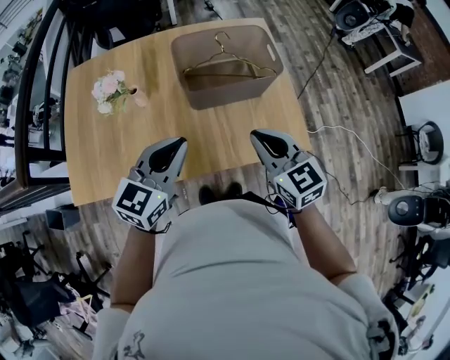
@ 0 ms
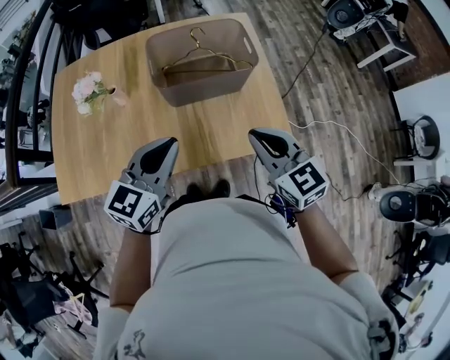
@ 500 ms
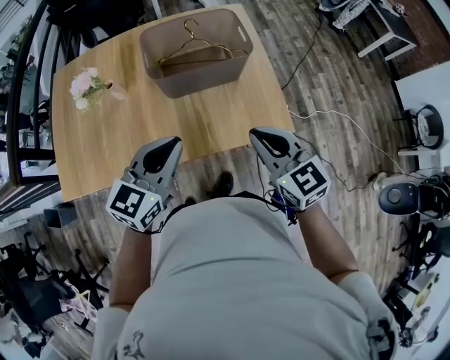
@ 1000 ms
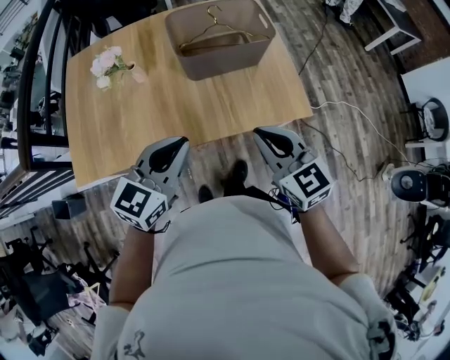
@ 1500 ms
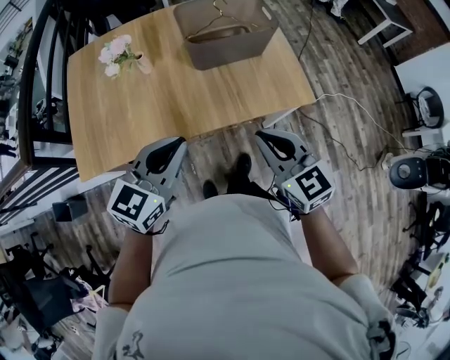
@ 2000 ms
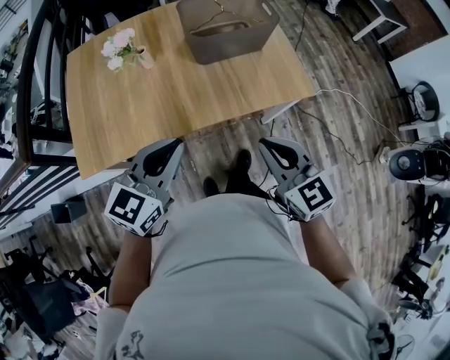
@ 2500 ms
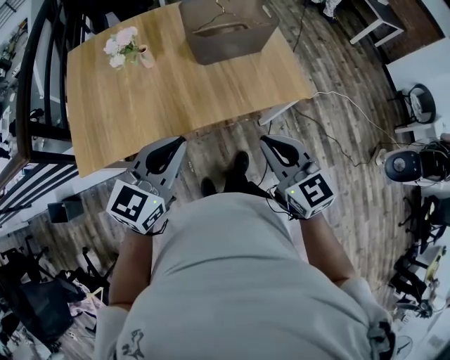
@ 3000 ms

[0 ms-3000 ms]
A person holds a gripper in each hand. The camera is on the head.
0 ms to 1500 ms: The grippers both shift backward by roughly 10 cm.
1500 ms to 3000 ms: The two grippers go some 15 cm backward and to the left.

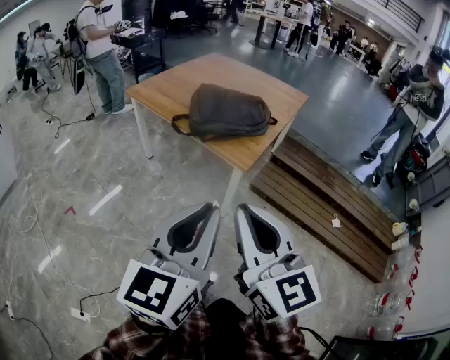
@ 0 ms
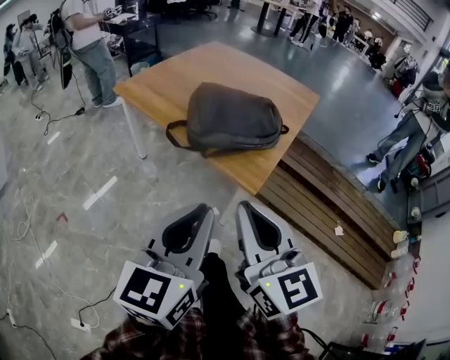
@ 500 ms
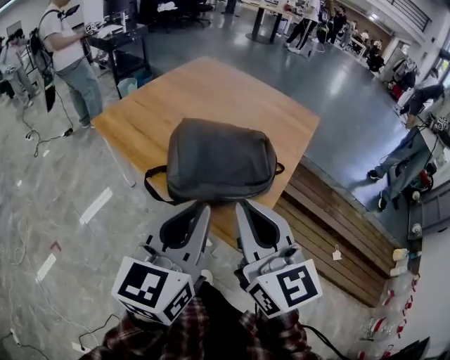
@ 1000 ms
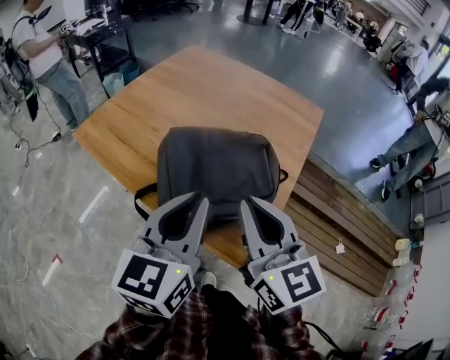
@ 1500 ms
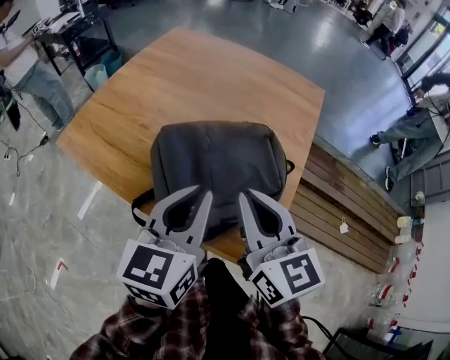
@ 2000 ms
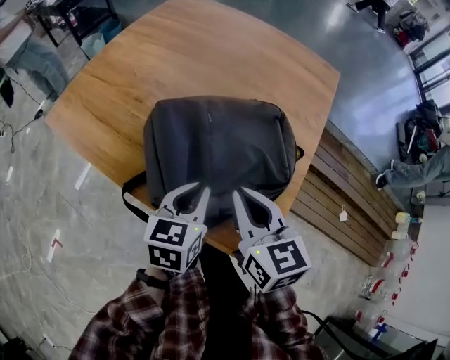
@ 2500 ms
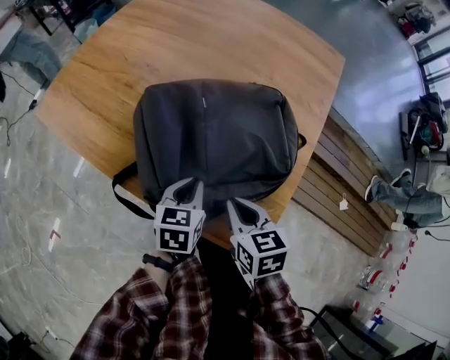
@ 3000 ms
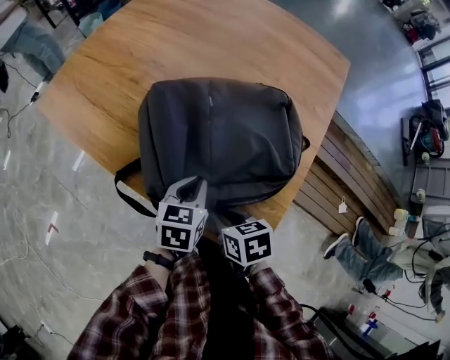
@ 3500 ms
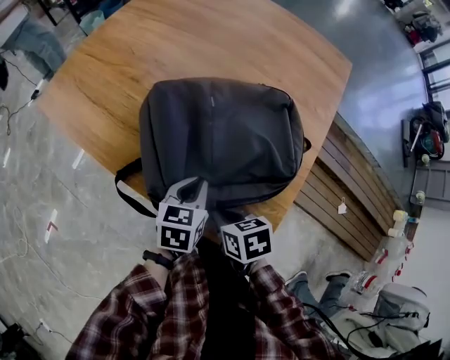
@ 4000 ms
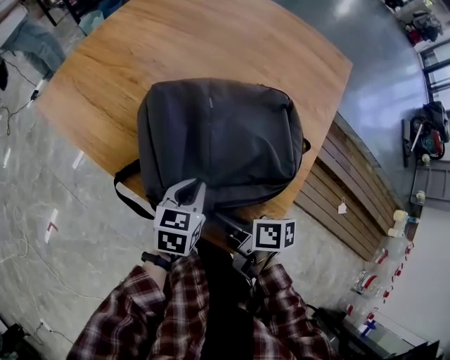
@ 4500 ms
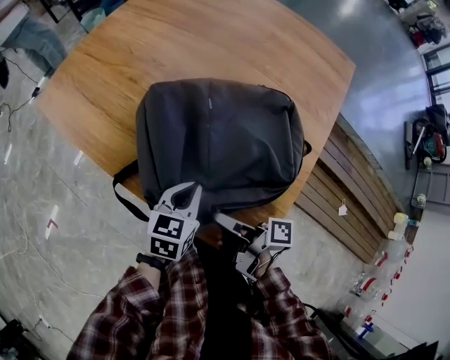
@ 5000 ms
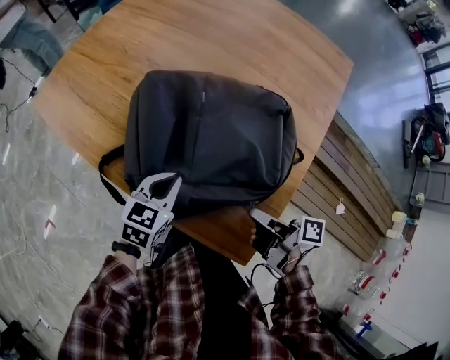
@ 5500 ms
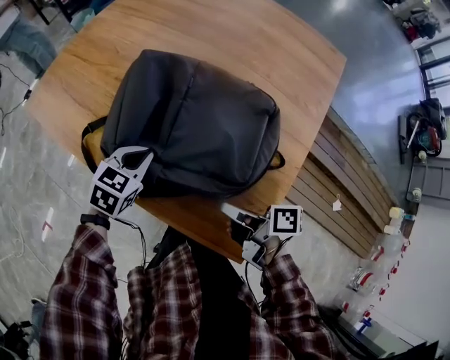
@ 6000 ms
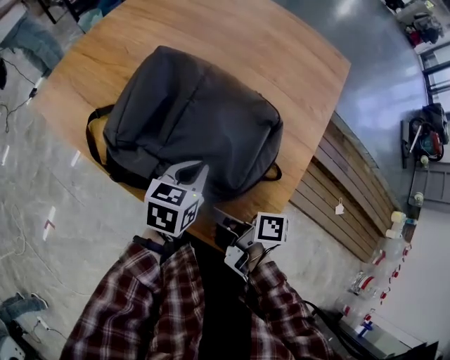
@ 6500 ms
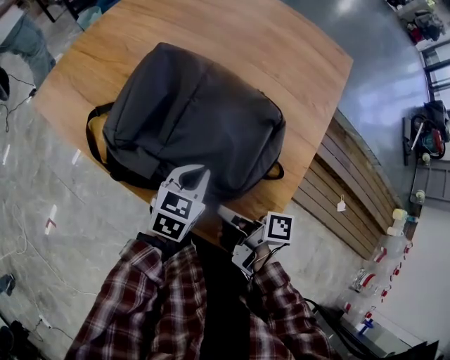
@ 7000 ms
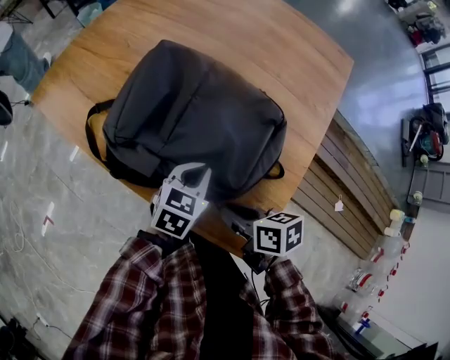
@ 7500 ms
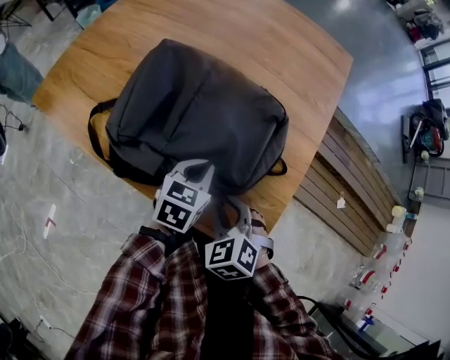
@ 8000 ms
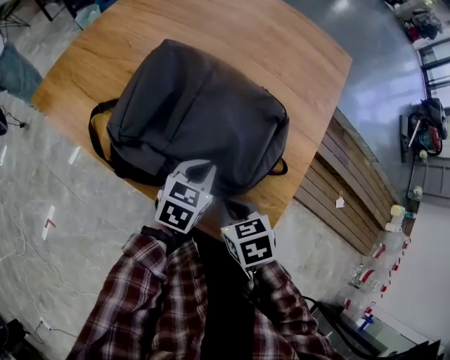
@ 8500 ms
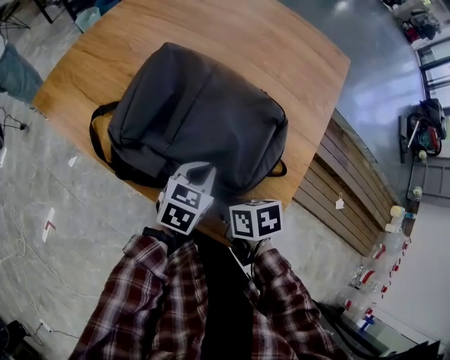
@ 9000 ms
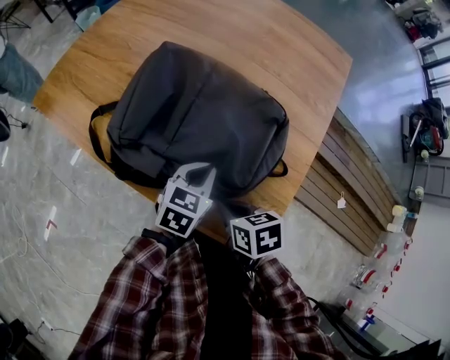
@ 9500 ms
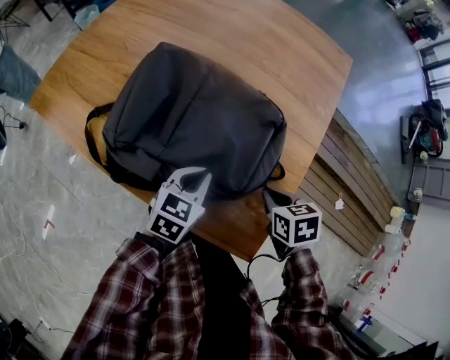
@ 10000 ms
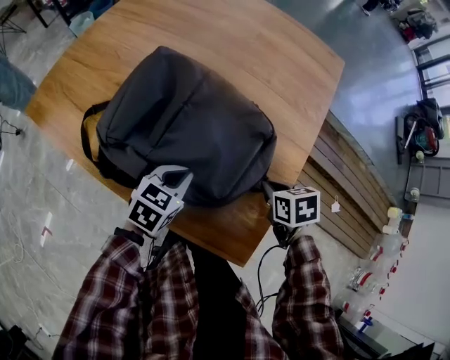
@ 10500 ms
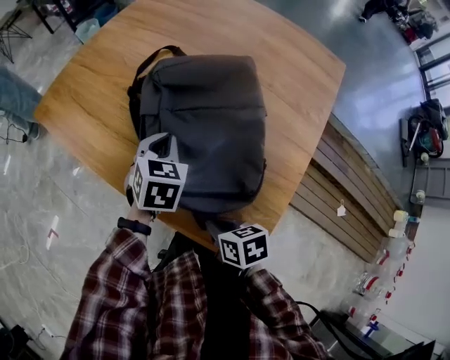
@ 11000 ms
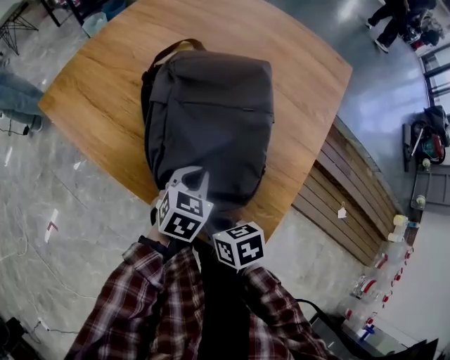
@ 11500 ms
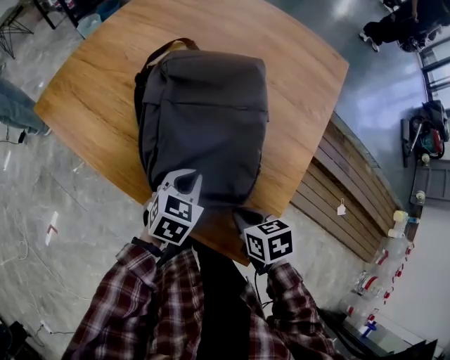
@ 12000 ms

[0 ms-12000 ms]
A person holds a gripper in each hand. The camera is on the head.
0 ms to 2000 ms: Both grippers are carried forward, approximately 60 cm.
2000 ms to 4000 ms: The grippers both shift downward by about 30 cm. The right gripper tips its fingers downward by some 50 degrees. Meanwhile the left gripper changes its angle by approximately 30 degrees.
4000 ms to 6000 ms: The left gripper shifts approximately 10 cm forward and to the left, and rotates approximately 30 degrees. The right gripper shifts about 5 cm to the right, and points its fingers roughly 40 degrees further upward.
6000 ms to 8000 ms: The left gripper changes place by approximately 15 cm; the right gripper twists about 80 degrees counterclockwise, seen from behind.
8000 ms to 10000 ms: The right gripper goes about 15 cm to the right and forward, and rotates roughly 40 degrees.

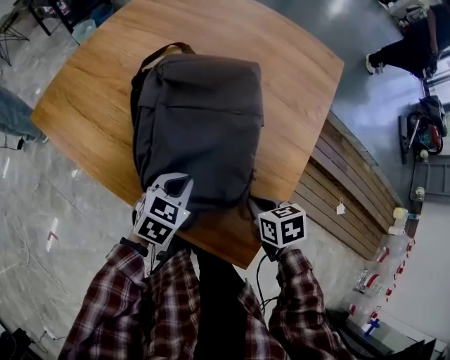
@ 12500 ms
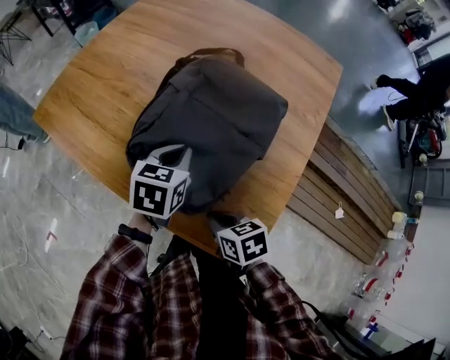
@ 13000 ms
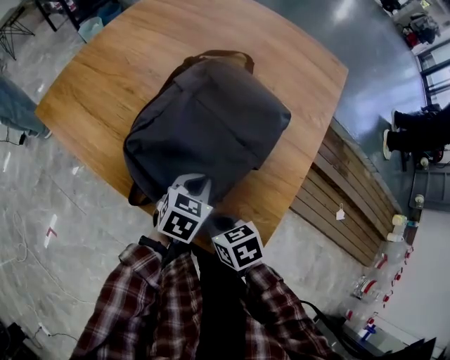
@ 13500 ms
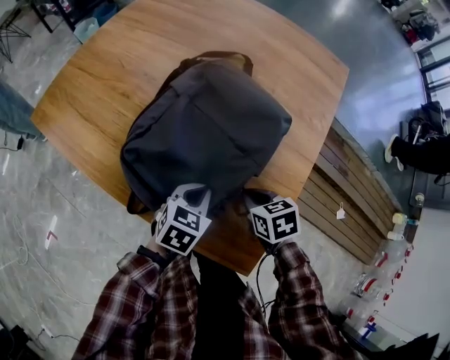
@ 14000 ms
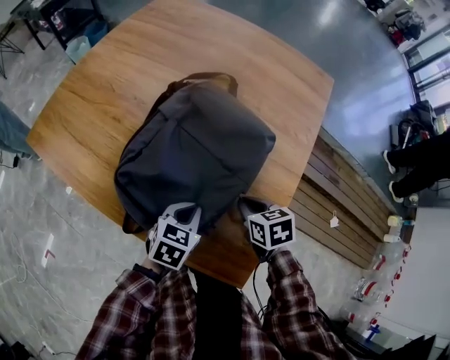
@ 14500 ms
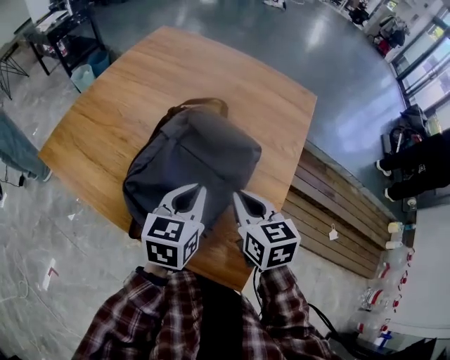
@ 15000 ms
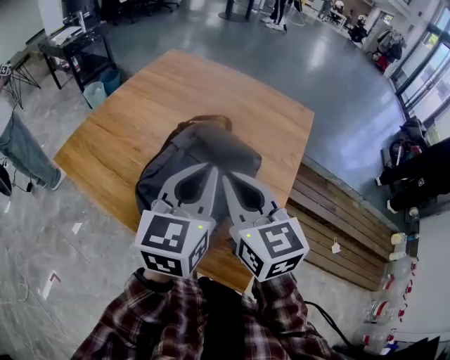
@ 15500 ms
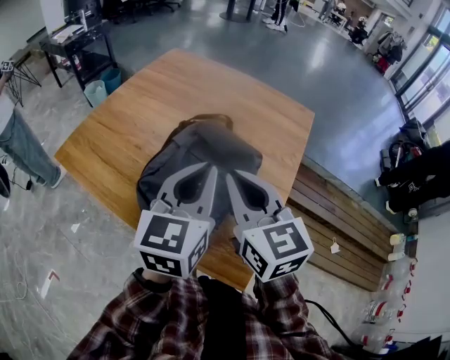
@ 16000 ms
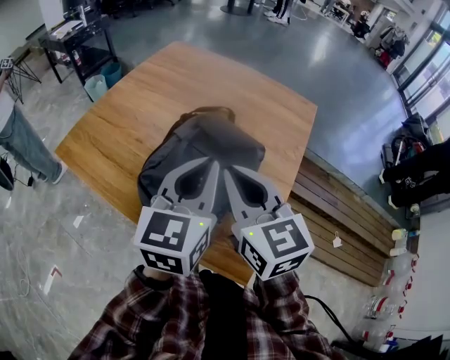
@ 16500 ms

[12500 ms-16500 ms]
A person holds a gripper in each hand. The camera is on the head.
12500 ms to 14500 ms: The right gripper moves forward, some 5 cm, and goes to the left and returns, approximately 15 cm each way.
14500 ms to 16500 ms: The two grippers go roughly 30 cm upward. The left gripper angles its fingers upward, by approximately 40 degrees. The right gripper tilts its fingers about 40 degrees upward.

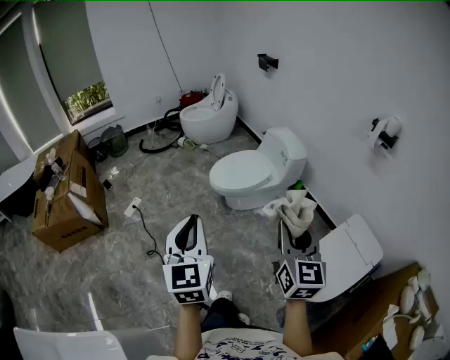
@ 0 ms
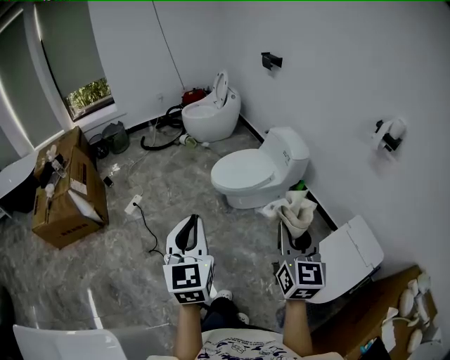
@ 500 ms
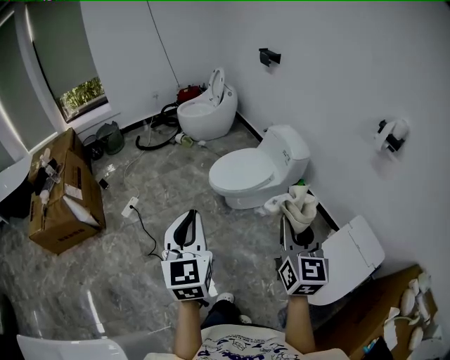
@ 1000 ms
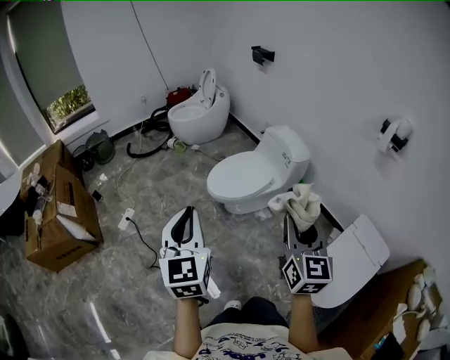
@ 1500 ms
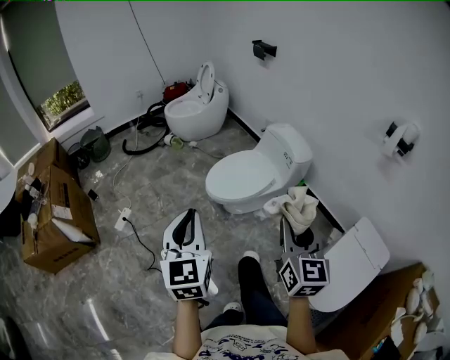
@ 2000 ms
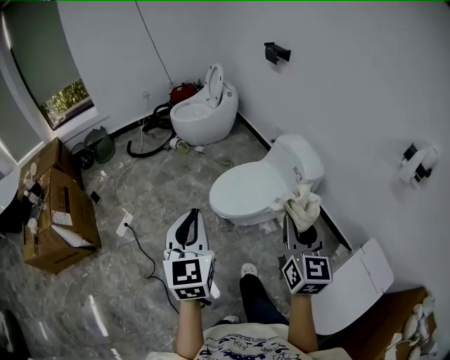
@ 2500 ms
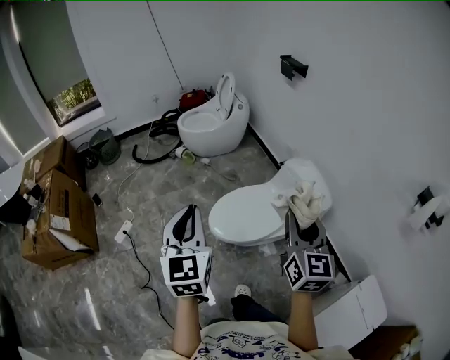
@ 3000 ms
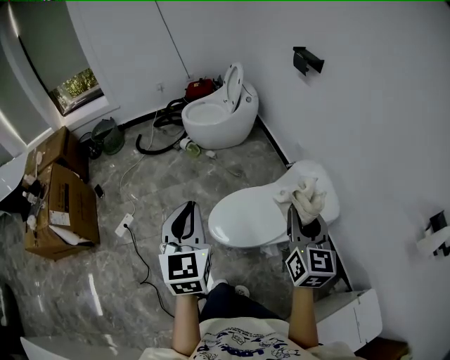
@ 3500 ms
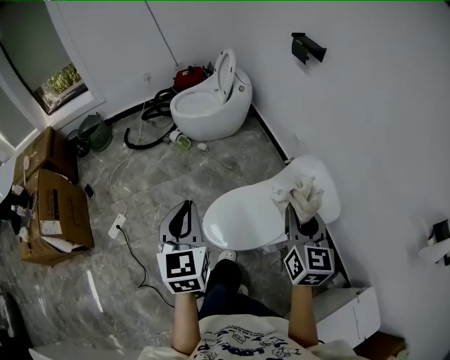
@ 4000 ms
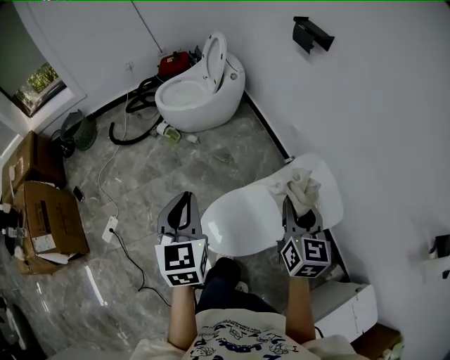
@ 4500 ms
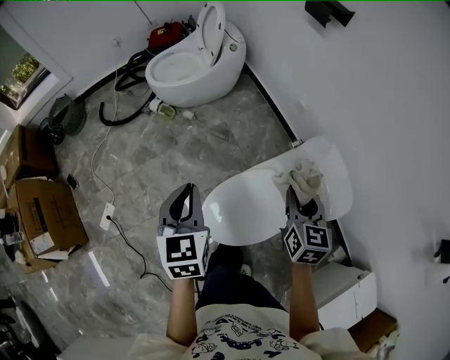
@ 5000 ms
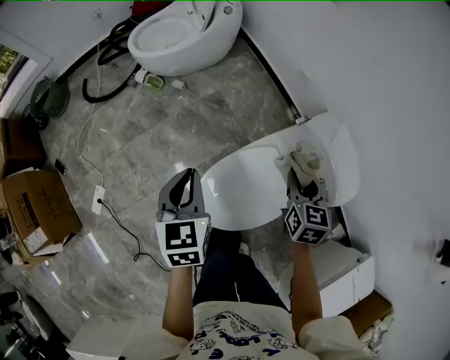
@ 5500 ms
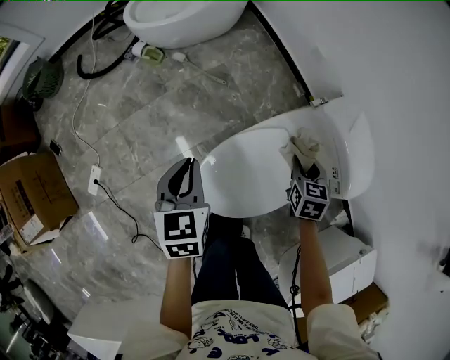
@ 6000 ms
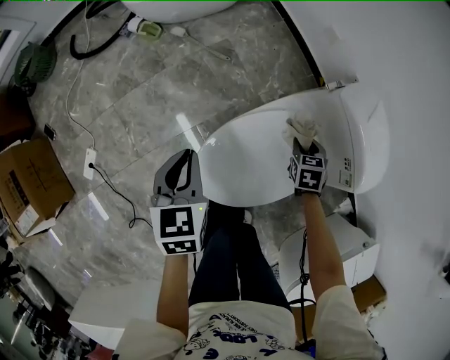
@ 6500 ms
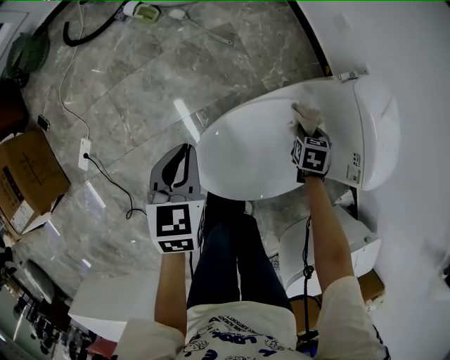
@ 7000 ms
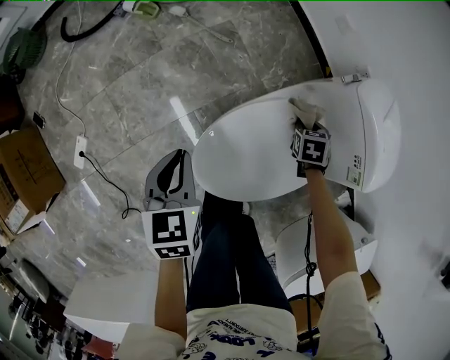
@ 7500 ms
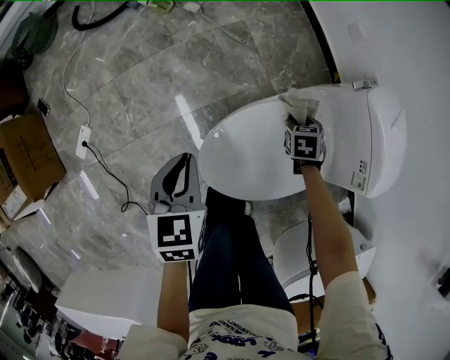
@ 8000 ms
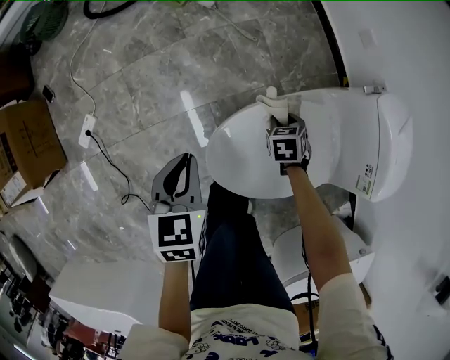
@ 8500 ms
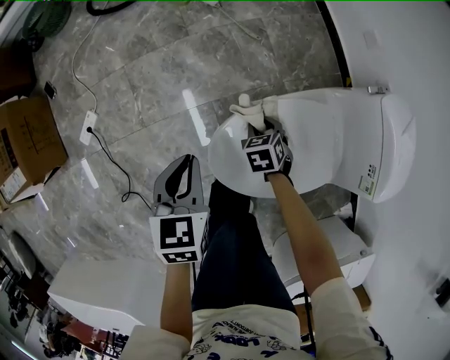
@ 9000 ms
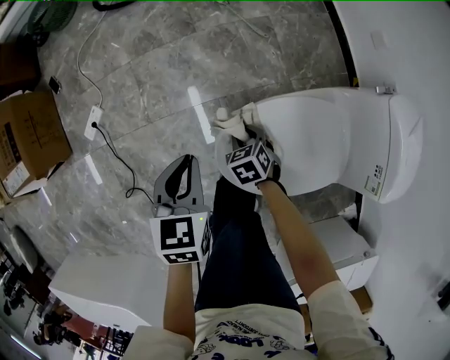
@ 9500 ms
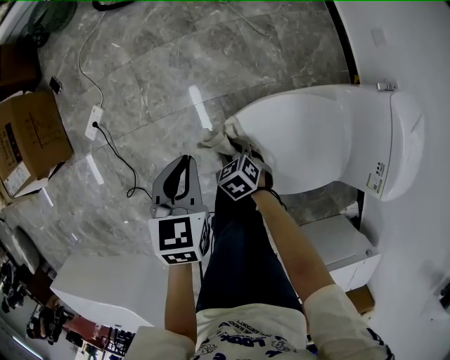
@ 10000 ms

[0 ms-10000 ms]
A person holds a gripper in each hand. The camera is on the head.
0 ms to 2000 ms: Both grippers move forward, approximately 25 cm.
2000 ms to 4000 ms: The two grippers travel together, forward, some 50 cm.
4000 ms to 6000 ms: Both grippers travel together downward and forward, approximately 50 cm. The left gripper changes its angle by roughly 30 degrees; the right gripper tilts its fingers some 40 degrees downward.
6000 ms to 8000 ms: The left gripper goes some 15 cm downward and backward; the right gripper goes some 20 cm downward, and rotates approximately 30 degrees.
8000 ms to 10000 ms: The right gripper moves roughly 35 cm, and swivels roughly 40 degrees, while the left gripper ends up roughly 10 cm from where it was.
